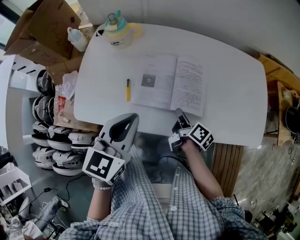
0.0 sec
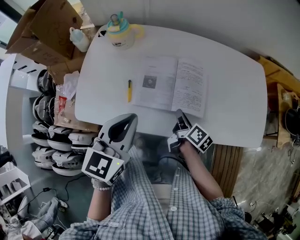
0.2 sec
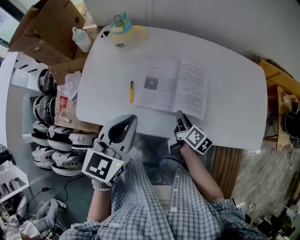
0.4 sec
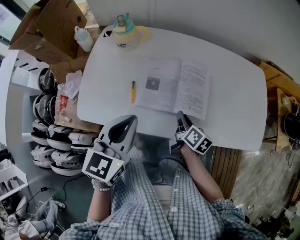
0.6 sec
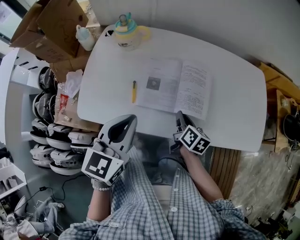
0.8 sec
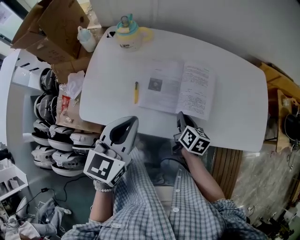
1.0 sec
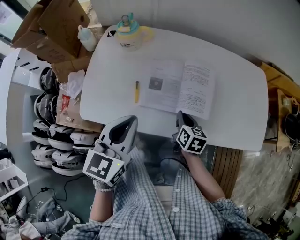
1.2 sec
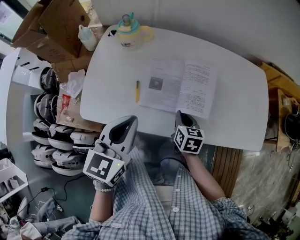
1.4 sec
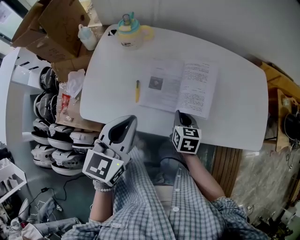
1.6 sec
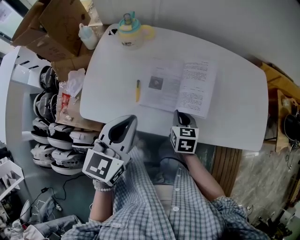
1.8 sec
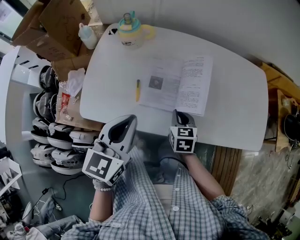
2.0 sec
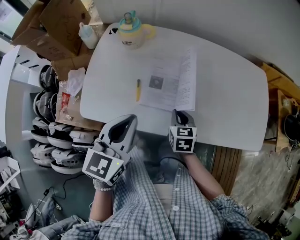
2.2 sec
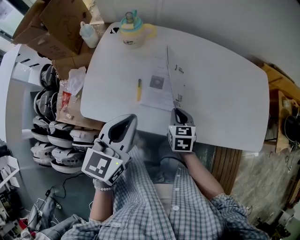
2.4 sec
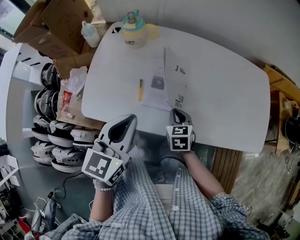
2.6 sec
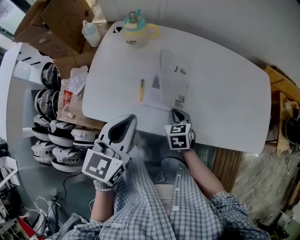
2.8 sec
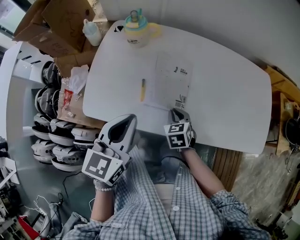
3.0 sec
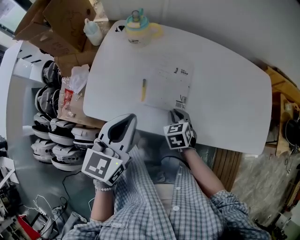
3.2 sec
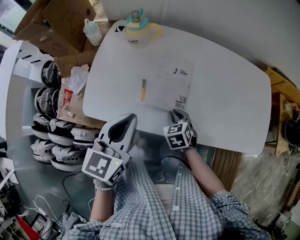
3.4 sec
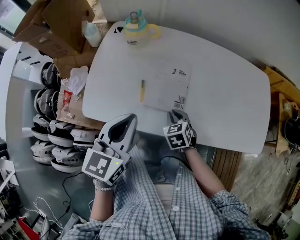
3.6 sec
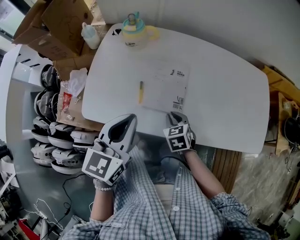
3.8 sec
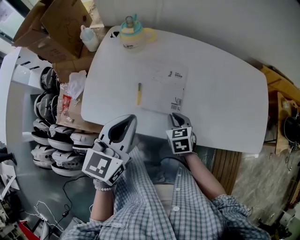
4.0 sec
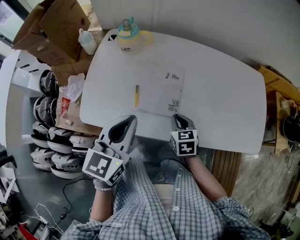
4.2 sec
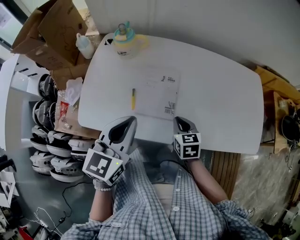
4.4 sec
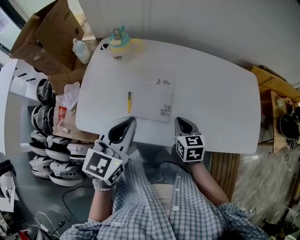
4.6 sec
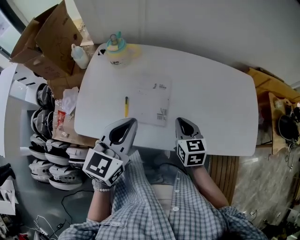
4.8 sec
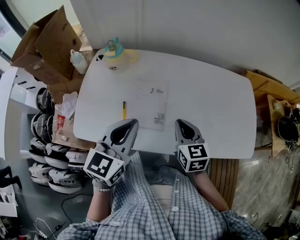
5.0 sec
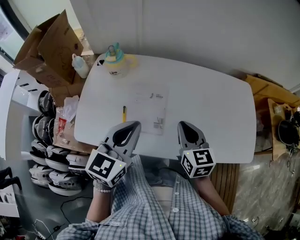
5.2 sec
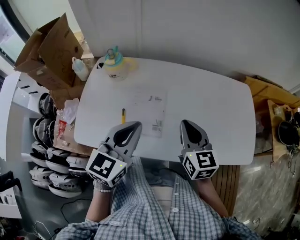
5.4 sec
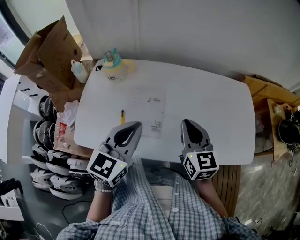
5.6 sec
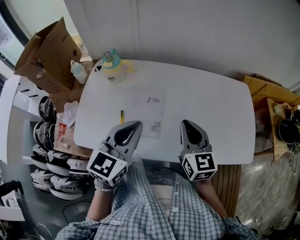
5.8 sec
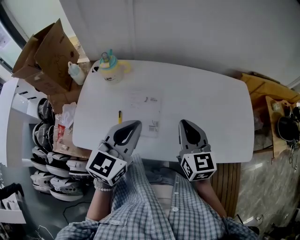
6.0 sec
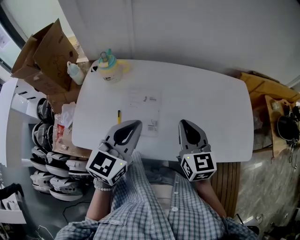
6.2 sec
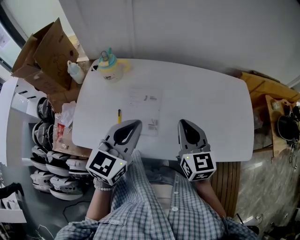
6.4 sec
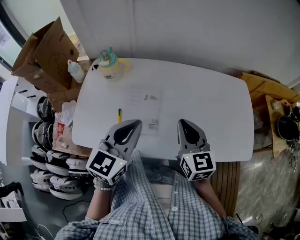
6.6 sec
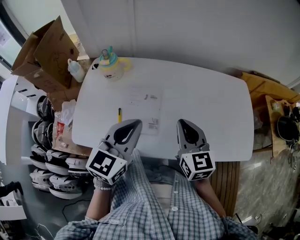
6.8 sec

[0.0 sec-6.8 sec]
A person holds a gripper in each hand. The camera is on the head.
0.0 sec to 1.4 sec: The right gripper rotates around the line of its fingers by roughly 50 degrees, counterclockwise from behind.
1.4 sec to 2.8 sec: The right gripper is displaced to the left by roughly 5 cm, and rotates about 30 degrees.
2.8 sec to 4.0 sec: The grippers move only a little.
4.0 sec to 5.4 sec: The left gripper is displaced to the right by about 10 cm. Meanwhile the right gripper moves upward and to the right, approximately 20 cm, and tips its fingers upward by about 30 degrees.
5.4 sec to 6.8 sec: The grippers move only a little.

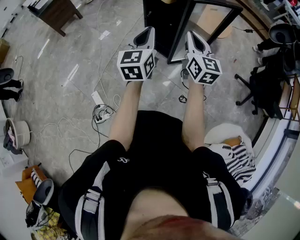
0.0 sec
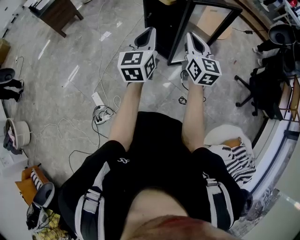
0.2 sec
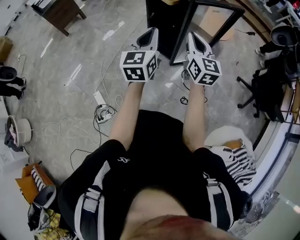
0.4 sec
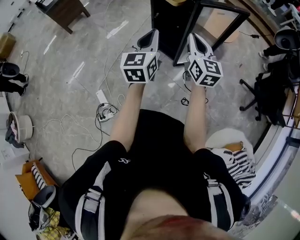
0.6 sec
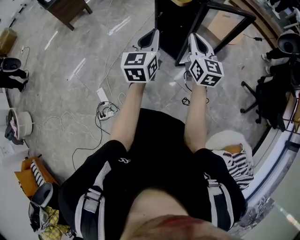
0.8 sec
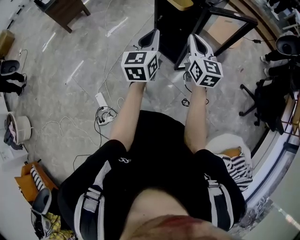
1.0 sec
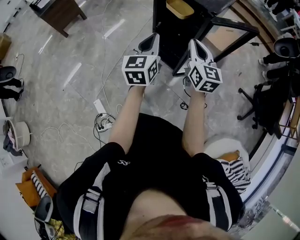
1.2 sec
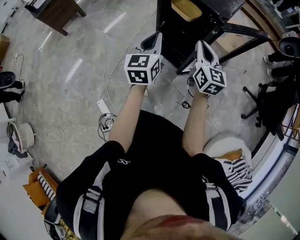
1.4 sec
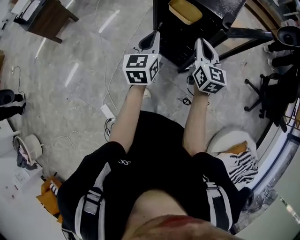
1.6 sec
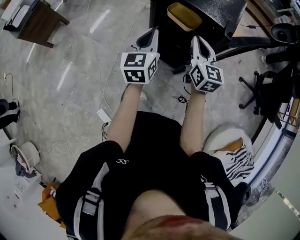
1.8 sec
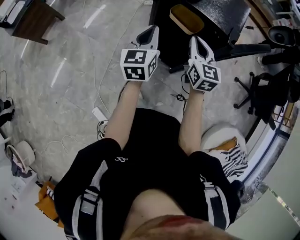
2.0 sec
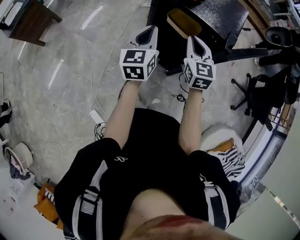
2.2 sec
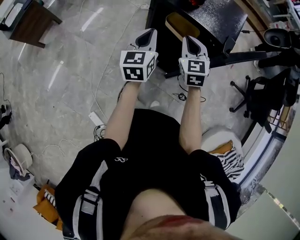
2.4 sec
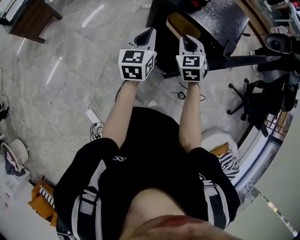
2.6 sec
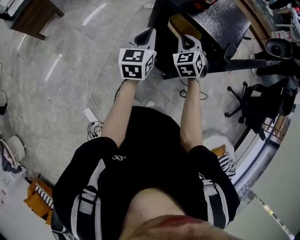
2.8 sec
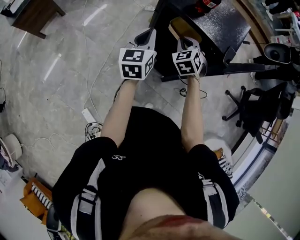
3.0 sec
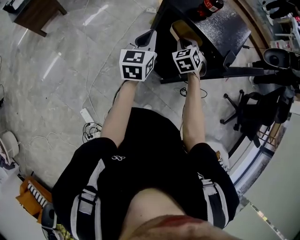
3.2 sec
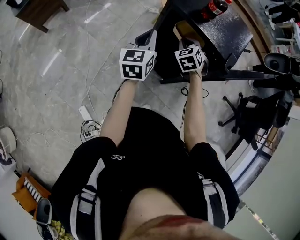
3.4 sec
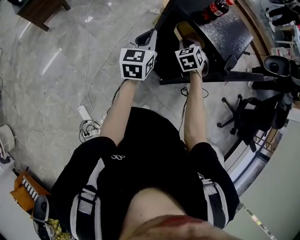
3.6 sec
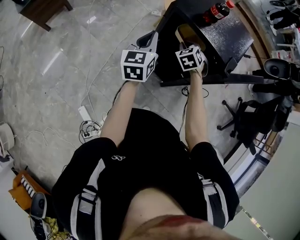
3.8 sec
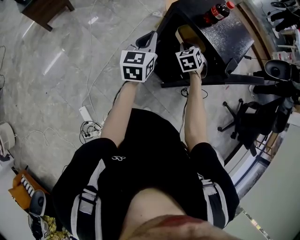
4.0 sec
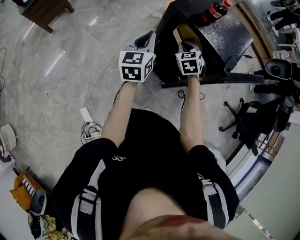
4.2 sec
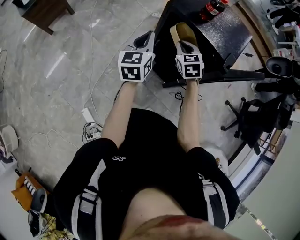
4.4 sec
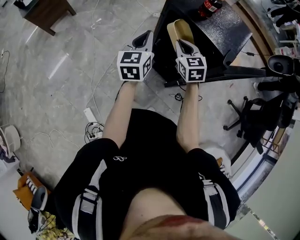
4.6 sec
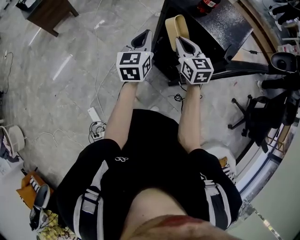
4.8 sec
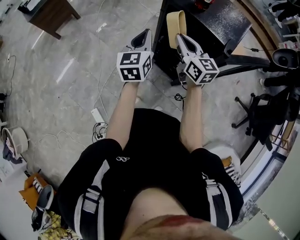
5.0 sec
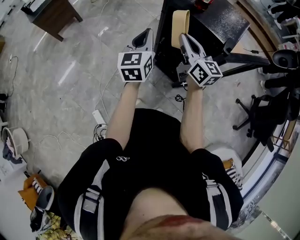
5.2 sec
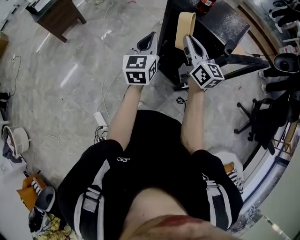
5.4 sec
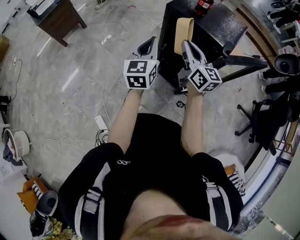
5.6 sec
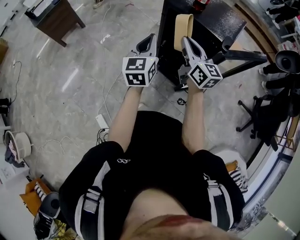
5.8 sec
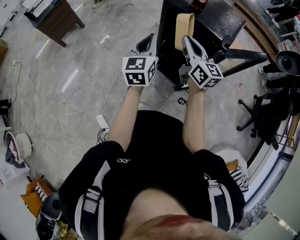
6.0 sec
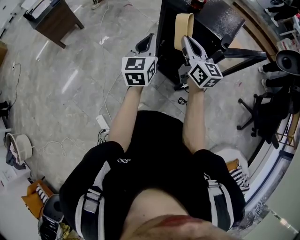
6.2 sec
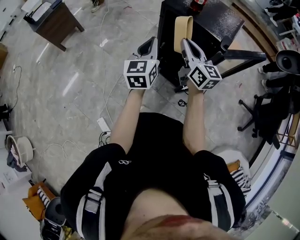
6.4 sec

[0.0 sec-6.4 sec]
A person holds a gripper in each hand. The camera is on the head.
0.0 sec to 1.6 sec: Both grippers move forward, roughly 25 cm.
1.6 sec to 3.2 sec: The left gripper moves forward, some 15 cm; the right gripper is displaced forward, downward and to the left by roughly 20 cm, and tips its fingers downward by roughly 40 degrees.
3.2 sec to 4.8 sec: The right gripper shifts approximately 10 cm upward and backward, and turns by about 50 degrees. Meanwhile the left gripper moves some 5 cm.
4.8 sec to 6.4 sec: The left gripper heads backward, covering roughly 5 cm, while the right gripper moves backward and upward, roughly 10 cm, and turns by approximately 30 degrees.

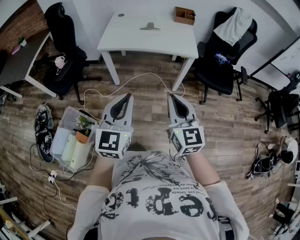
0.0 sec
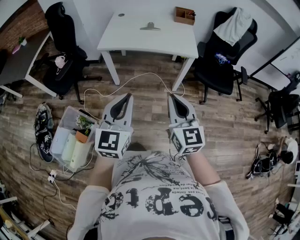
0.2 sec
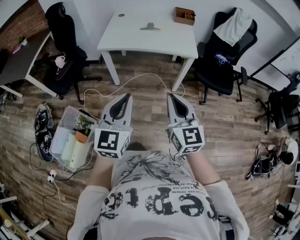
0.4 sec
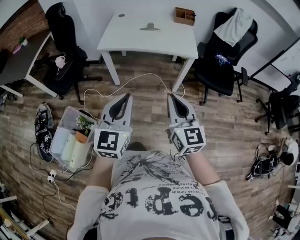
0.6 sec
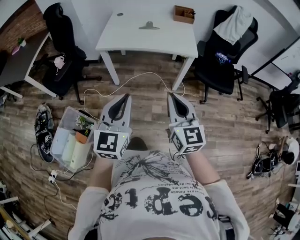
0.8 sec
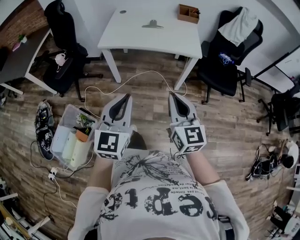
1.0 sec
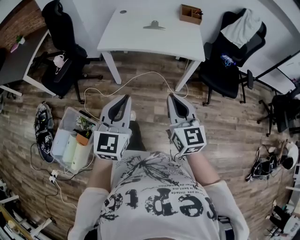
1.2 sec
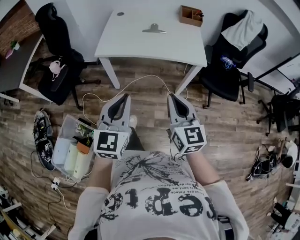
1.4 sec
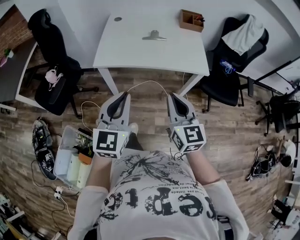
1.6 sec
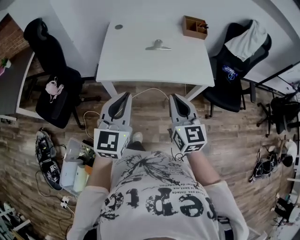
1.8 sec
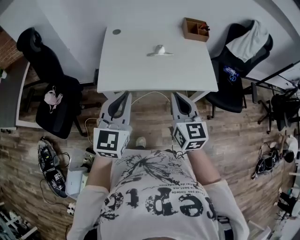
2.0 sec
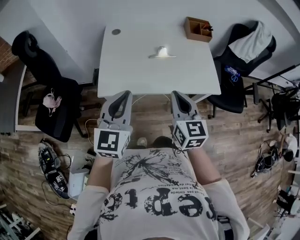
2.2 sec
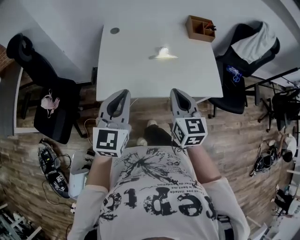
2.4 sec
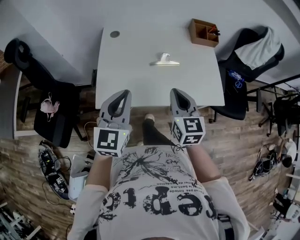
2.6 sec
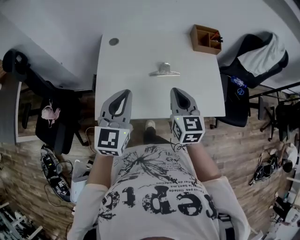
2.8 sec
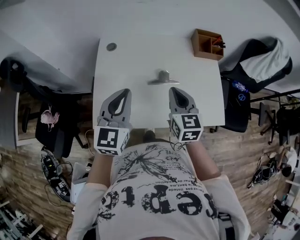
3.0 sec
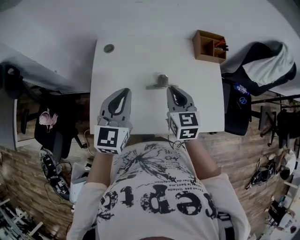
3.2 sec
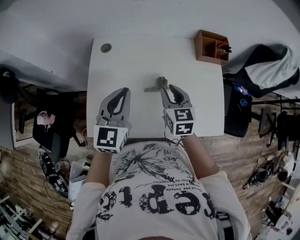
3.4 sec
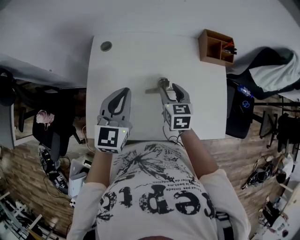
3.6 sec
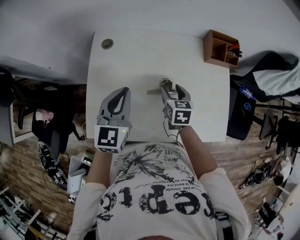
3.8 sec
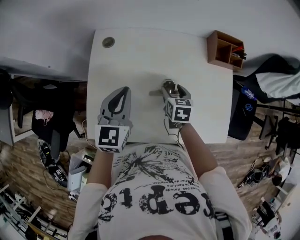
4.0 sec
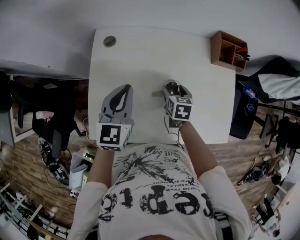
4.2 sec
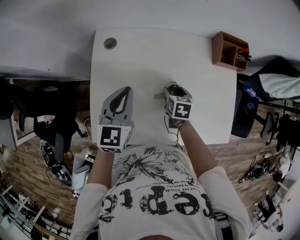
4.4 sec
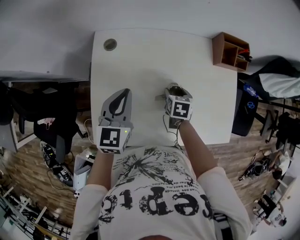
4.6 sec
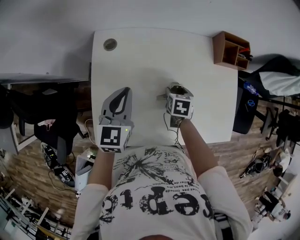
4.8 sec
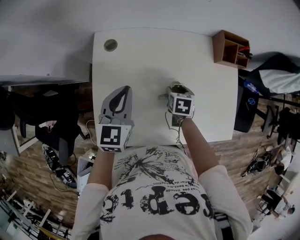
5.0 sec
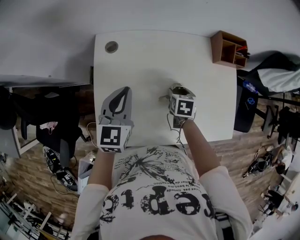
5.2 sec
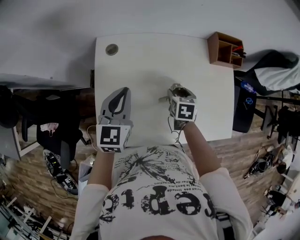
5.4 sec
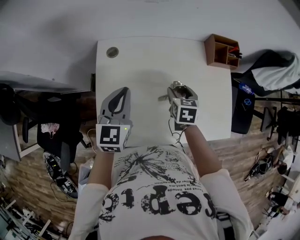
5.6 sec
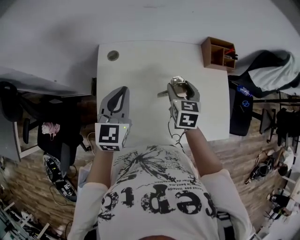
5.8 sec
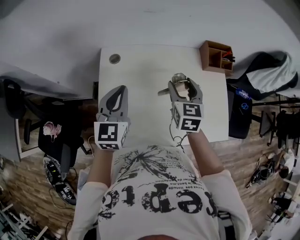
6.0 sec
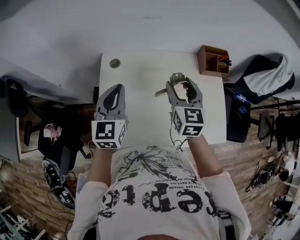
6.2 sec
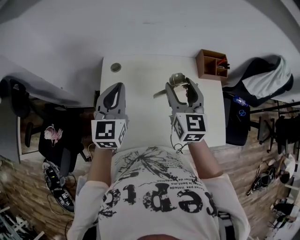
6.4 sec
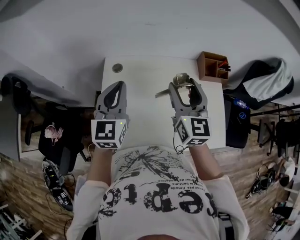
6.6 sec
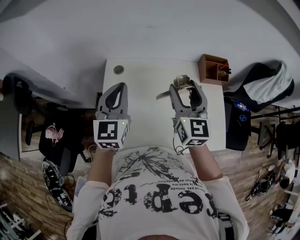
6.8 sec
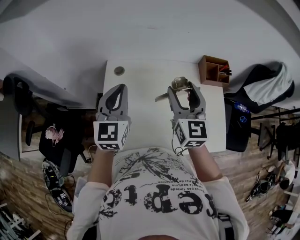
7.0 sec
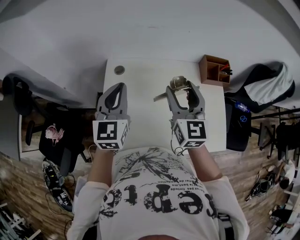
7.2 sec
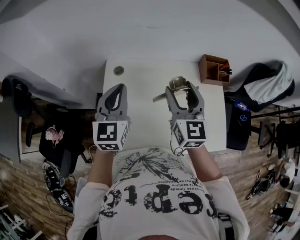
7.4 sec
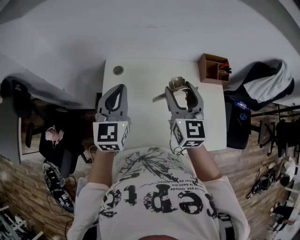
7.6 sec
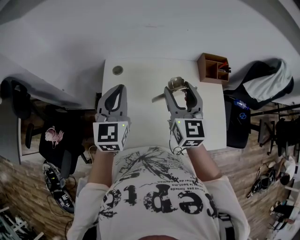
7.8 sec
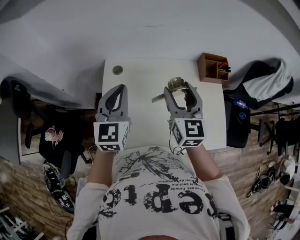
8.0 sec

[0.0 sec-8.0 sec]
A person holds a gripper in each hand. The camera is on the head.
0.0 sec to 1.6 sec: Both grippers travel together forward, some 25 cm.
1.6 sec to 3.2 sec: The two grippers travel together, forward, some 50 cm.
3.2 sec to 4.8 sec: The left gripper heads forward, downward and to the left, covering roughly 15 cm. Meanwhile the right gripper heads downward and forward, covering about 25 cm, tilts its fingers some 40 degrees downward, and opens up.
4.8 sec to 6.4 sec: The right gripper moves upward, roughly 35 cm, and tilts its fingers some 50 degrees upward, while the left gripper goes approximately 15 cm upward.
6.4 sec to 8.0 sec: The grippers make only small movements.

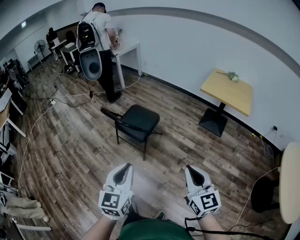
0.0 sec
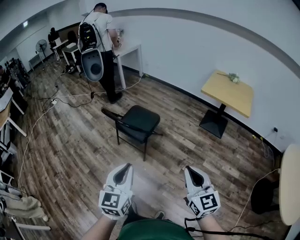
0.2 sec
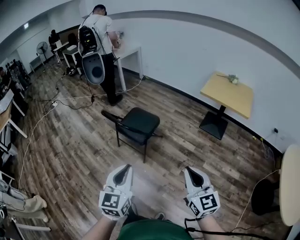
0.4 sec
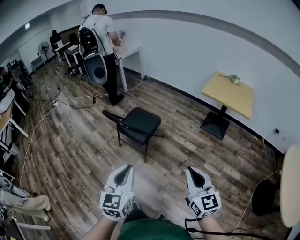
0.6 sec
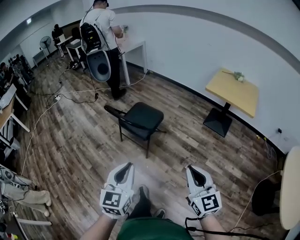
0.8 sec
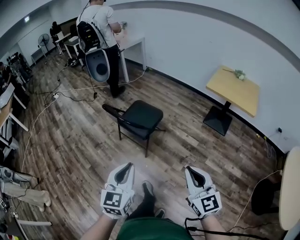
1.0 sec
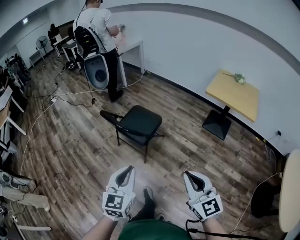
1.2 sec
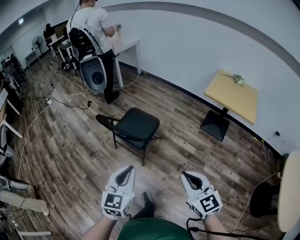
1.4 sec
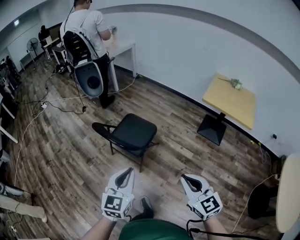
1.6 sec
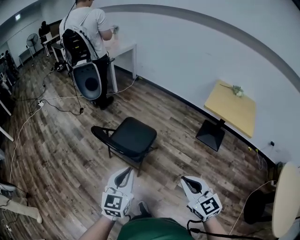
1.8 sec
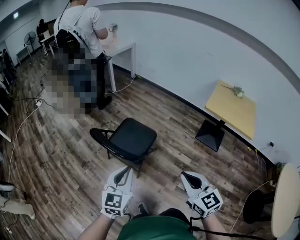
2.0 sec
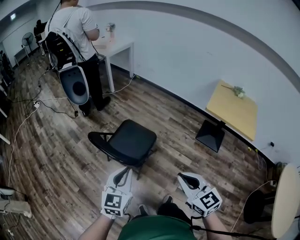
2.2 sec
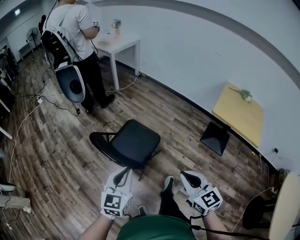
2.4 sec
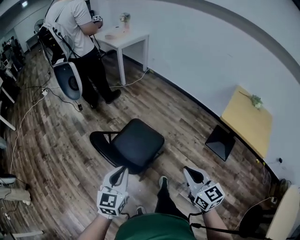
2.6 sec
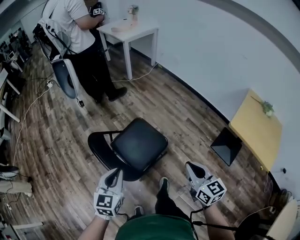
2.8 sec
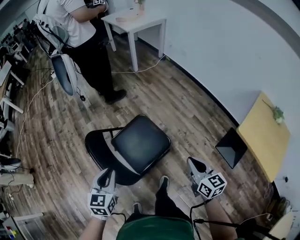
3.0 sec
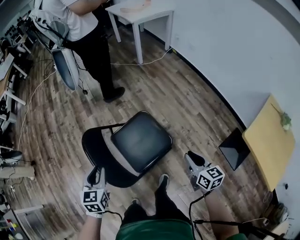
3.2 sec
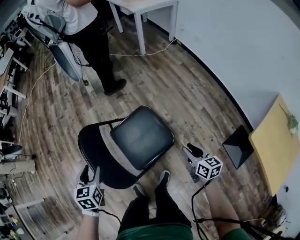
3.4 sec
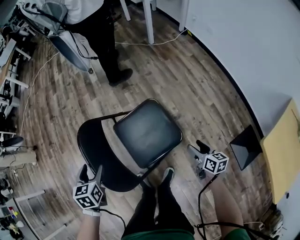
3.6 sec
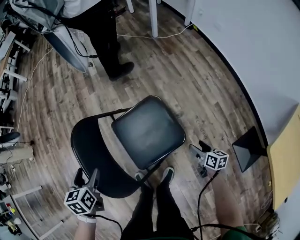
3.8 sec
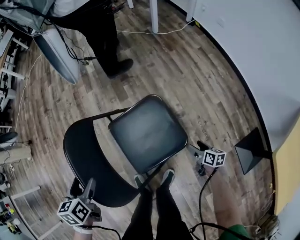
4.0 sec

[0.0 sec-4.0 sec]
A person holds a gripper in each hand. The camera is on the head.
0.0 sec to 1.4 sec: Both grippers travel together forward, roughly 10 cm.
1.4 sec to 2.6 sec: Both grippers travel together forward, approximately 30 cm.
2.6 sec to 4.0 sec: The right gripper goes roughly 50 cm downward, turns by about 50 degrees, and opens; the left gripper goes about 25 cm downward, tilts its fingers about 30 degrees downward, and opens.
